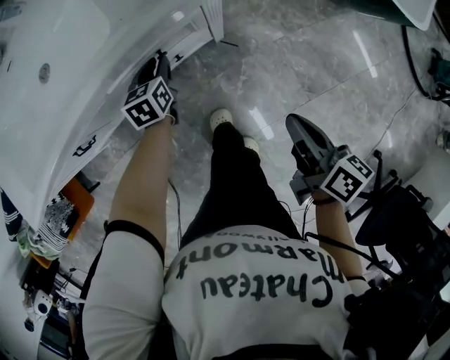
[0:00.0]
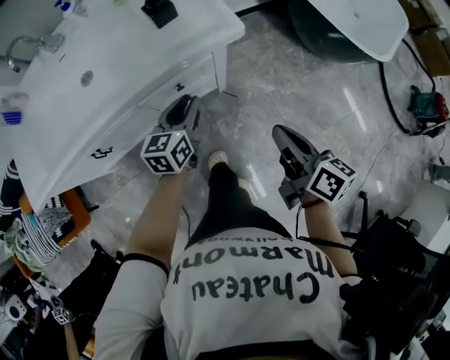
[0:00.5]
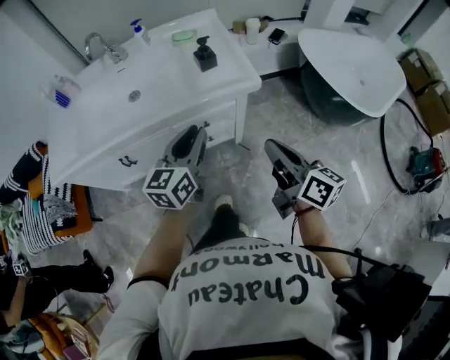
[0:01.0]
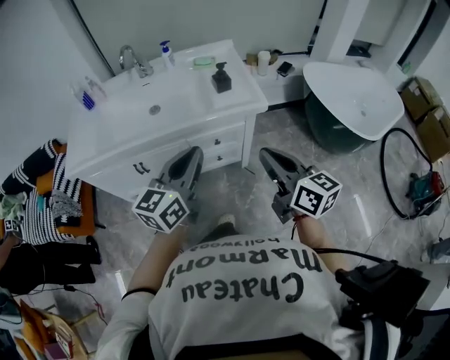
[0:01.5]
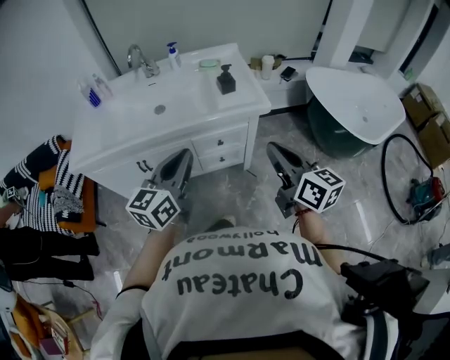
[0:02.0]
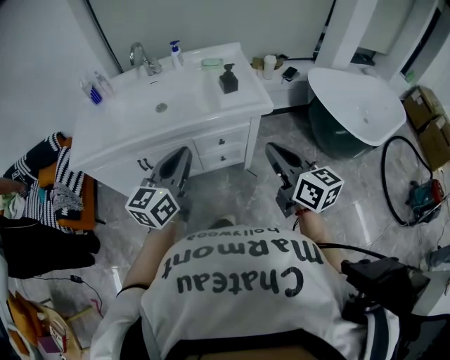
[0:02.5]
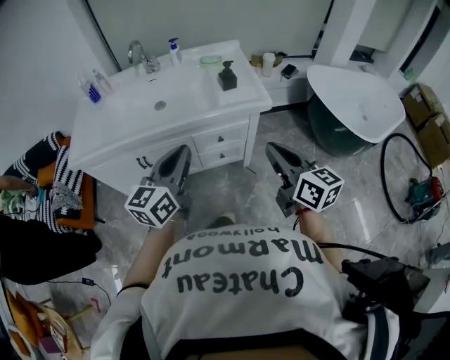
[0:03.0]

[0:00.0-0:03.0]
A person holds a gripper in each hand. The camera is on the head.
0:00.0 to 0:01.5: The right gripper shifts approximately 30 cm upward, and turns by some 50 degrees. The left gripper heads upward and backward, covering about 50 cm, tilts its fingers some 40 degrees upward, and closes.
0:01.5 to 0:03.0: The left gripper heads to the left, covering some 5 cm.

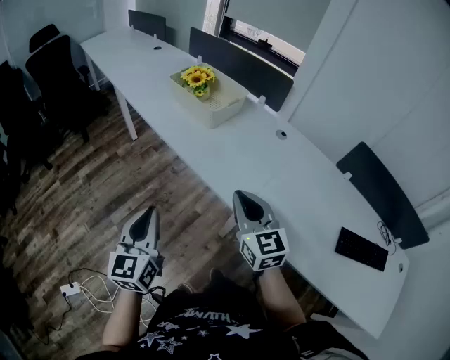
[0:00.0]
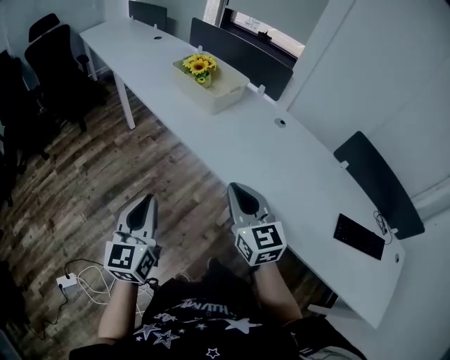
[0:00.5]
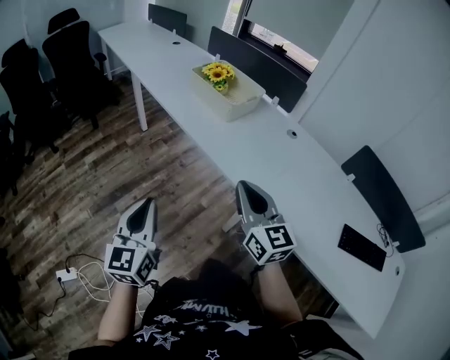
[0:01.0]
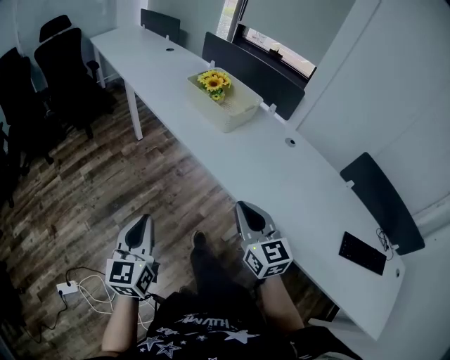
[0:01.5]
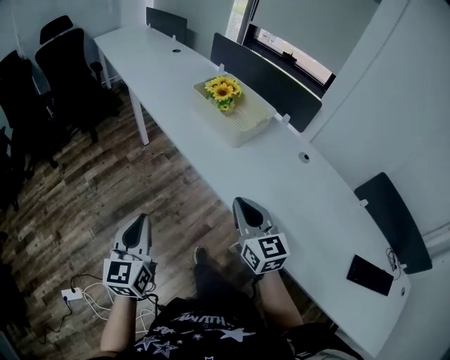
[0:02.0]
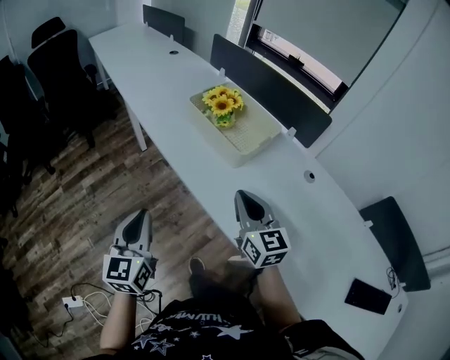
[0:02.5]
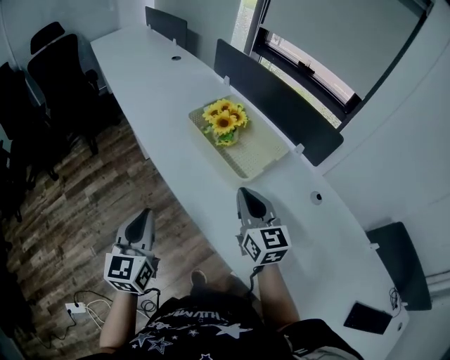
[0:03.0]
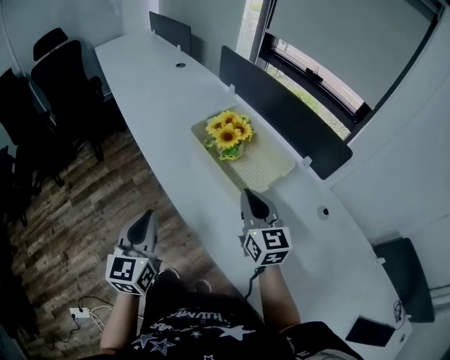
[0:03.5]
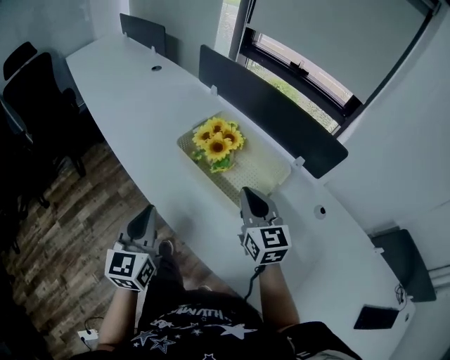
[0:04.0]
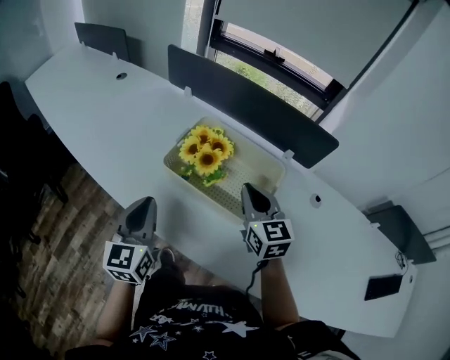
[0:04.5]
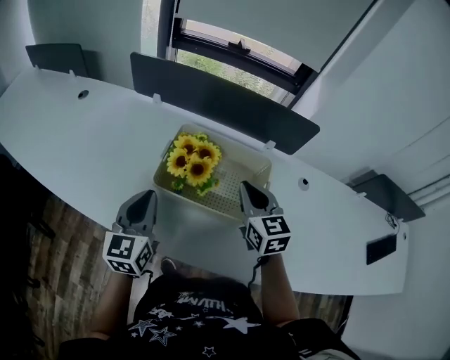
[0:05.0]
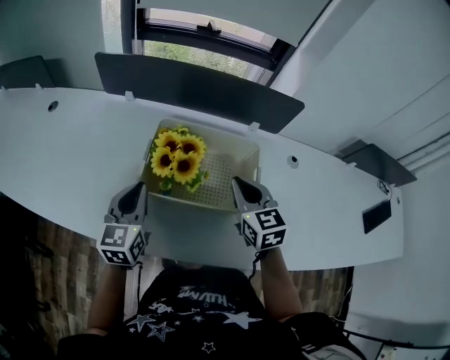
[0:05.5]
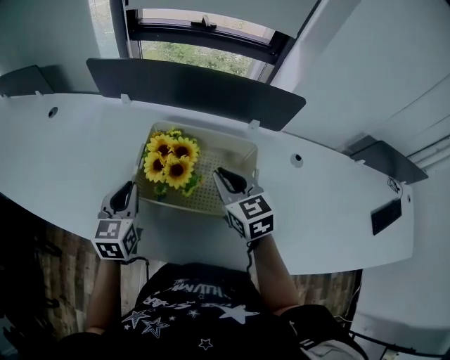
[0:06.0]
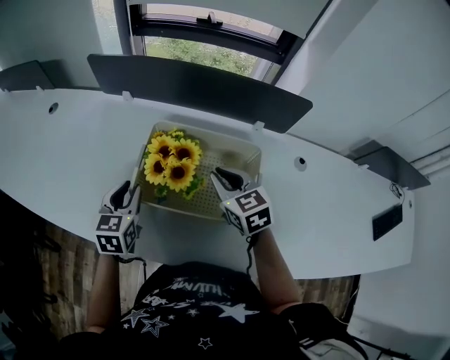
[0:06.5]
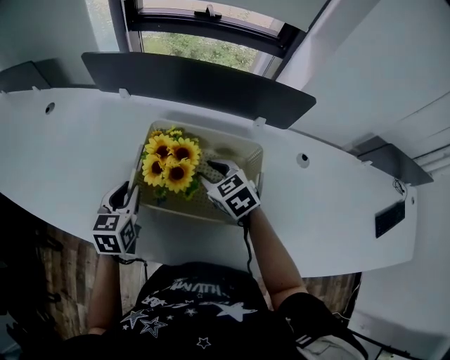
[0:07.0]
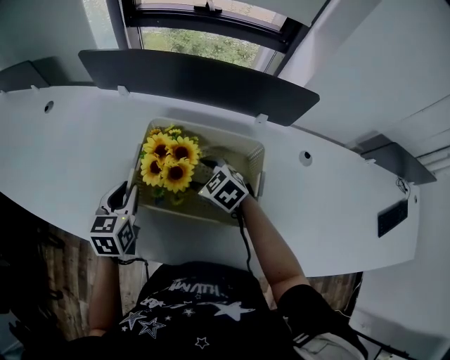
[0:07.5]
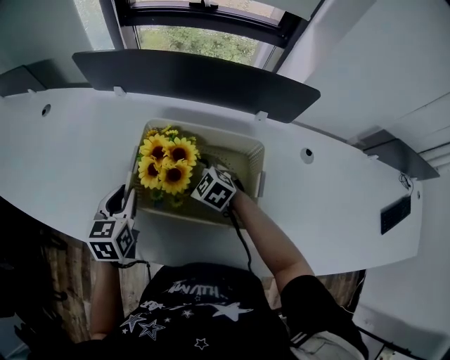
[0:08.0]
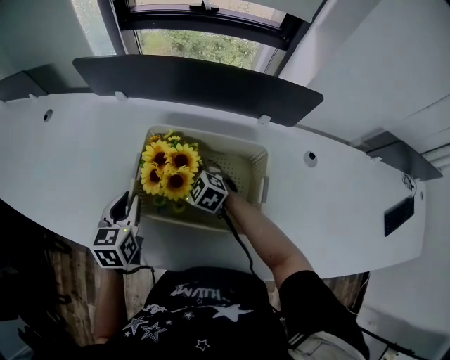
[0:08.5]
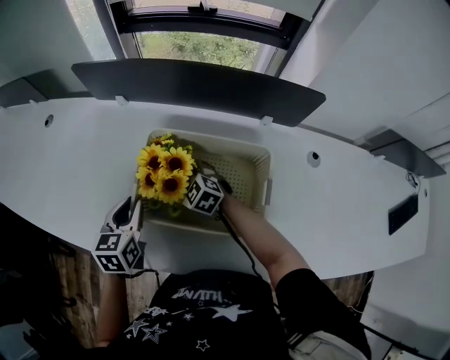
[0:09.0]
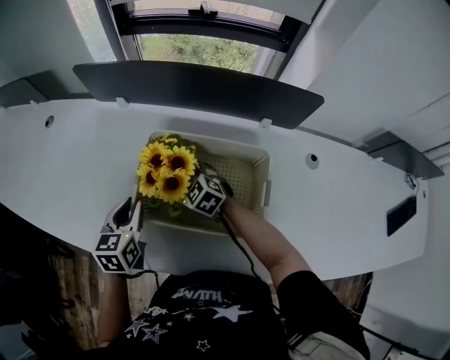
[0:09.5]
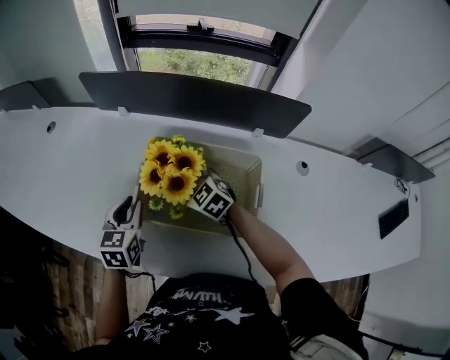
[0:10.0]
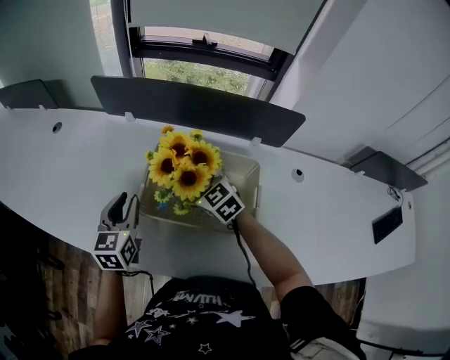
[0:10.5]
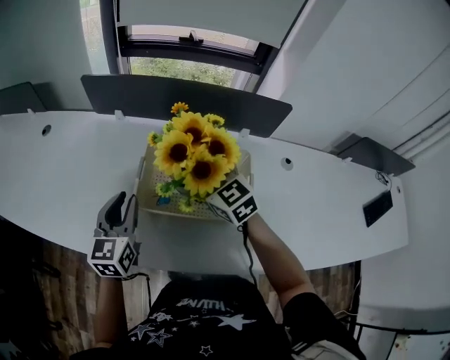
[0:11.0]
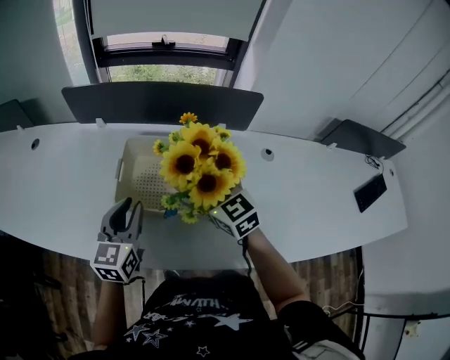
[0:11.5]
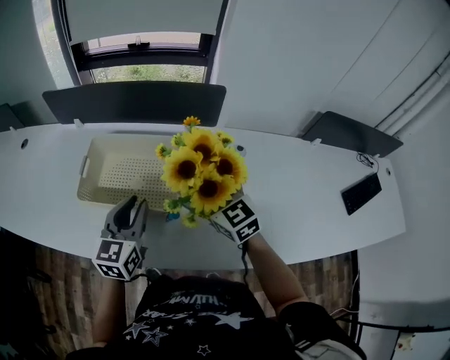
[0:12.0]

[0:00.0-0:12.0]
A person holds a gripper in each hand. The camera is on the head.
0:00.0 to 0:02.0: The left gripper goes roughly 15 cm to the left and forward. The right gripper heads forward and to the left, covering approximately 15 cm.
0:02.0 to 0:04.0: Both grippers move forward, about 35 cm.
0:04.0 to 0:06.0: The right gripper ends up roughly 10 cm from where it was, and rotates about 30 degrees; the left gripper changes place by about 25 cm, and swivels roughly 40 degrees.
0:06.0 to 0:08.0: The right gripper travels downward and to the left by roughly 20 cm, changes its angle by roughly 40 degrees, and opens its fingers.
0:08.0 to 0:10.0: The right gripper shifts some 5 cm upward.
0:10.0 to 0:12.0: The right gripper shifts approximately 30 cm to the right, backward and upward, and changes its angle by approximately 30 degrees. The left gripper heads to the right and backward, covering about 25 cm, and rotates about 20 degrees.

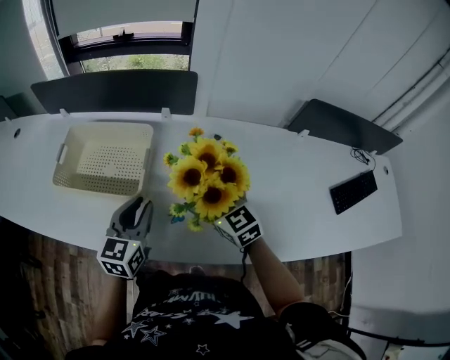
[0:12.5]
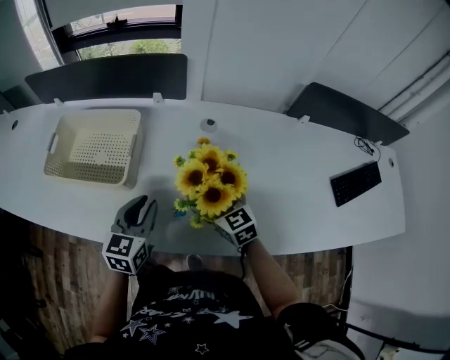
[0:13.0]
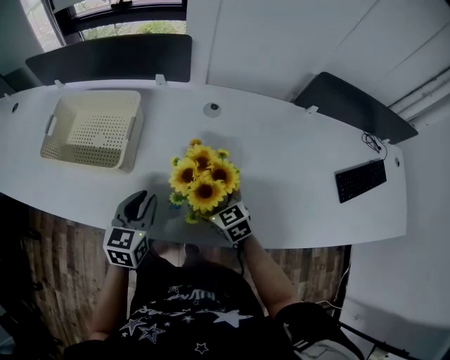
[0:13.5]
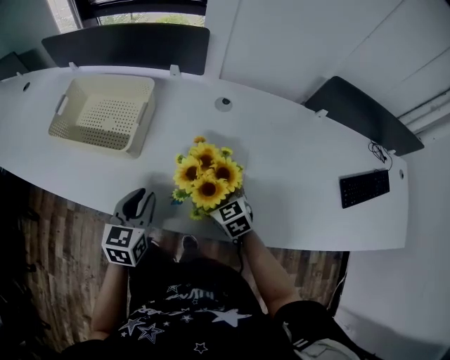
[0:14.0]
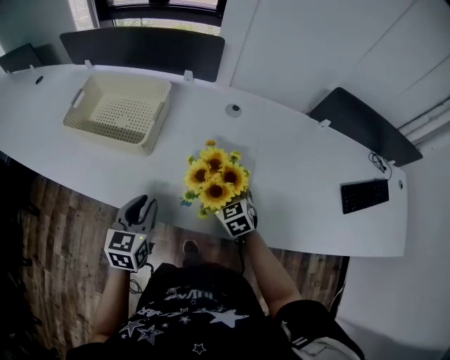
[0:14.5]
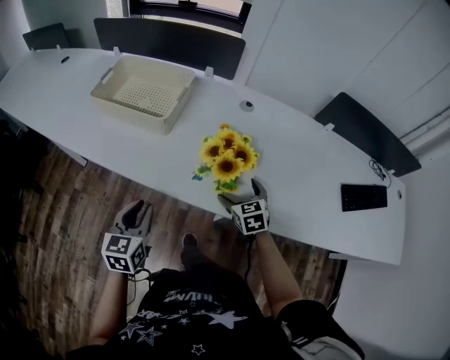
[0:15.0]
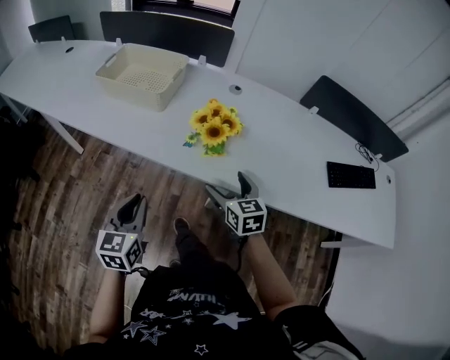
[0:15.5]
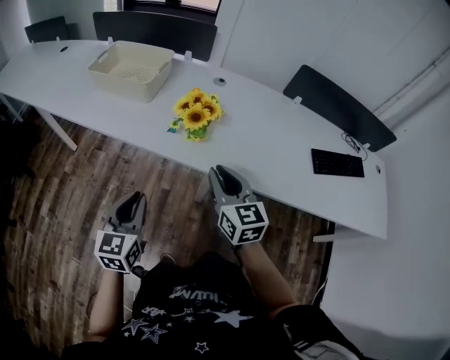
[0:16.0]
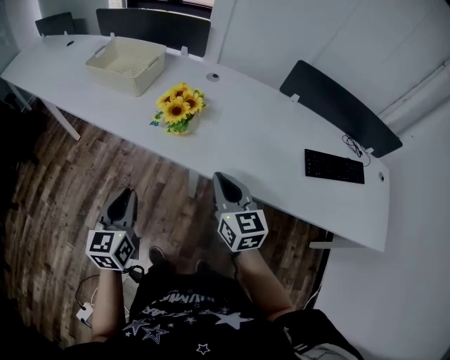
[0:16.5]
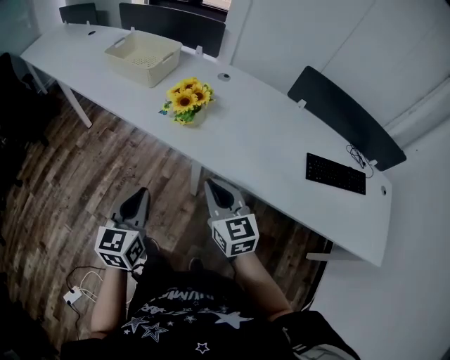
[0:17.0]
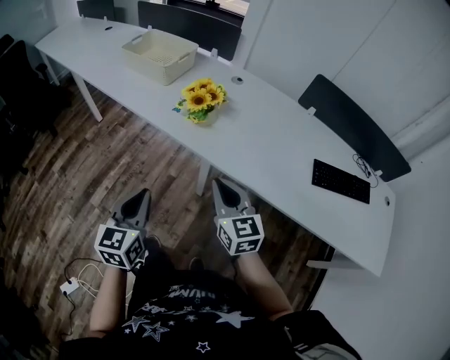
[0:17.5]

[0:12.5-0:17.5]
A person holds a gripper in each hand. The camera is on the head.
0:12.5 to 0:15.0: The right gripper goes some 20 cm downward, backward and to the right, and swivels roughly 20 degrees. The left gripper is displaced backward by some 20 cm, and swivels approximately 20 degrees.
0:15.0 to 0:17.5: The left gripper travels backward and to the right by approximately 30 cm, and closes its fingers. The right gripper heads backward and upward, covering about 30 cm, swivels some 30 degrees, and closes up.

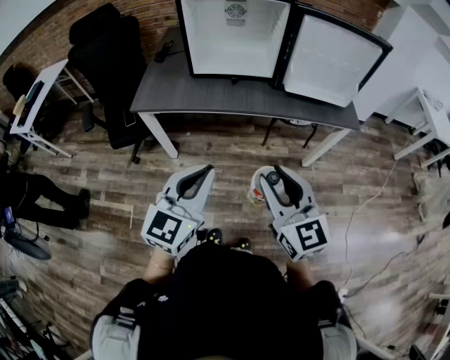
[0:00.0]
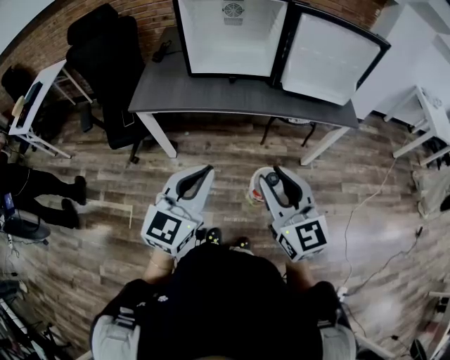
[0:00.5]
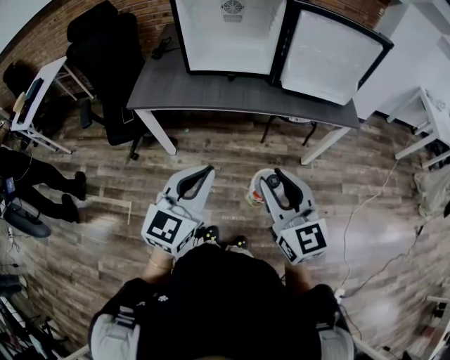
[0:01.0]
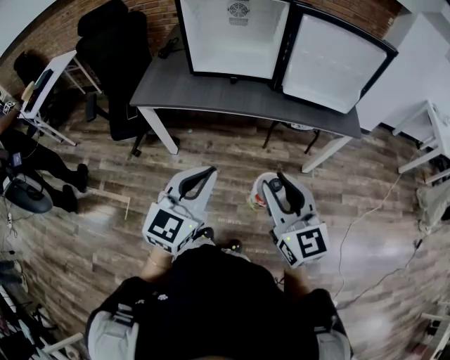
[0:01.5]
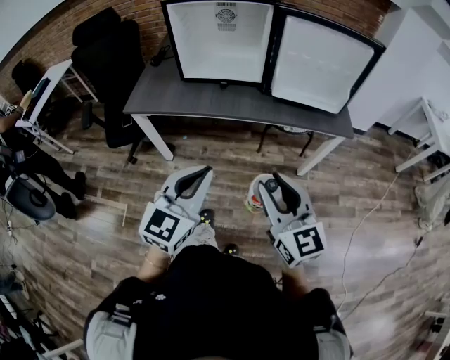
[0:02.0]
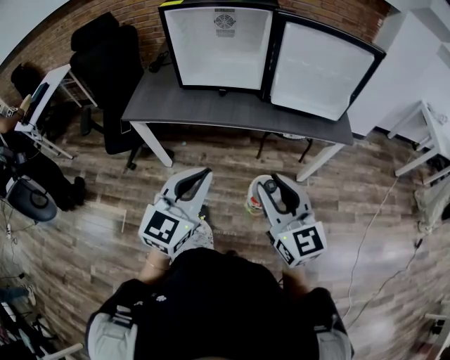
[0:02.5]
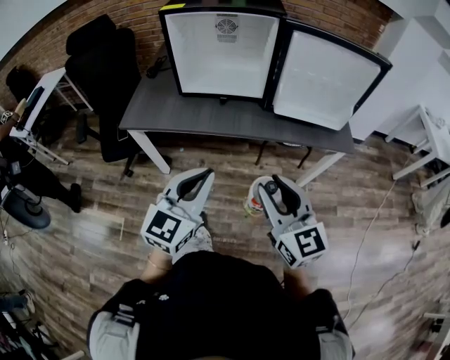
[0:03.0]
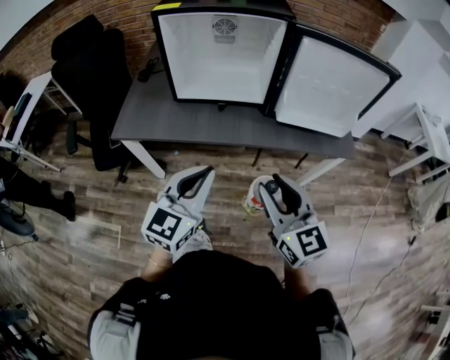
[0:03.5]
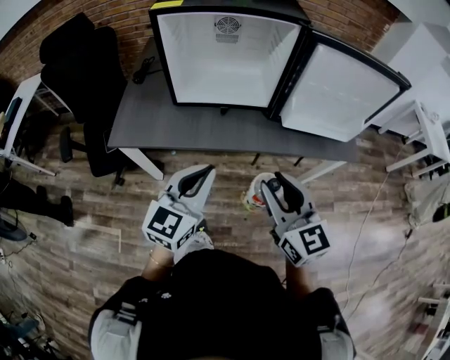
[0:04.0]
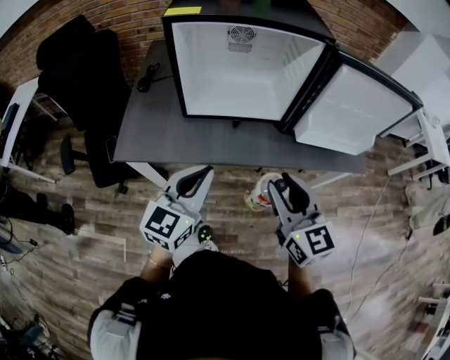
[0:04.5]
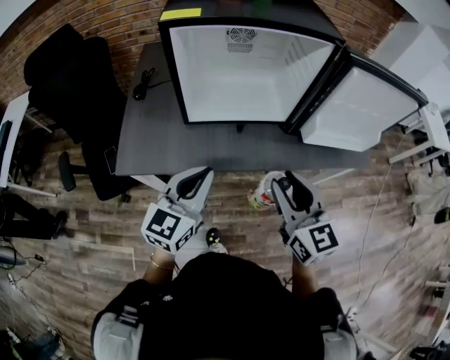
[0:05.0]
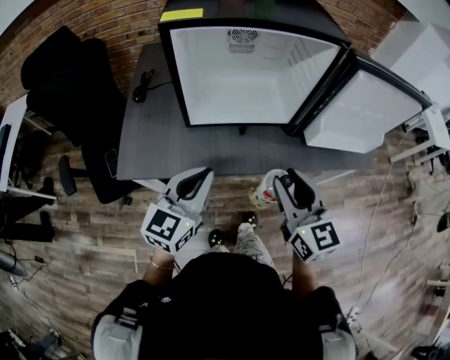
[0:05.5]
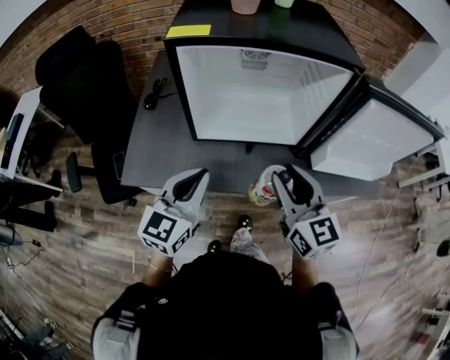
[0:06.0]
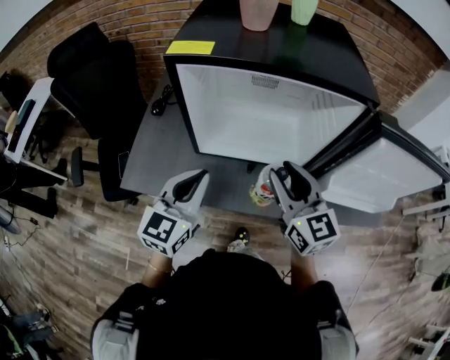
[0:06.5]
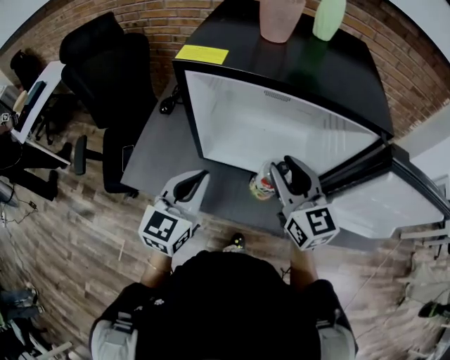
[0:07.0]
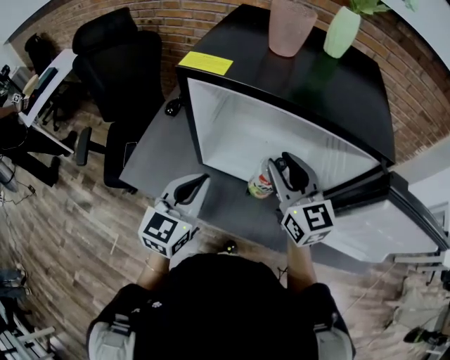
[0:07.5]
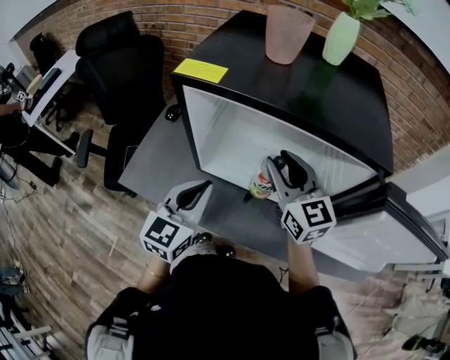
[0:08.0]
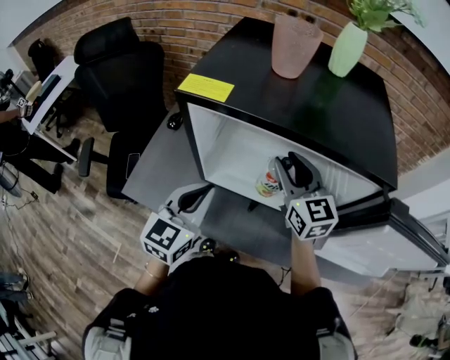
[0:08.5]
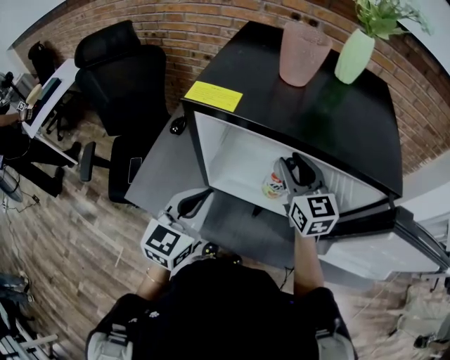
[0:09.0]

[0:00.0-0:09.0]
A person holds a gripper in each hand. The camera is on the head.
0:00.0 to 0:02.0: Both grippers move to the right, roughly 10 cm.
0:02.0 to 0:04.5: Both grippers travel together forward and to the left, roughly 30 cm.
0:04.5 to 0:07.0: The two grippers go approximately 25 cm forward.
0:07.0 to 0:09.0: The right gripper shifts some 15 cm forward.
